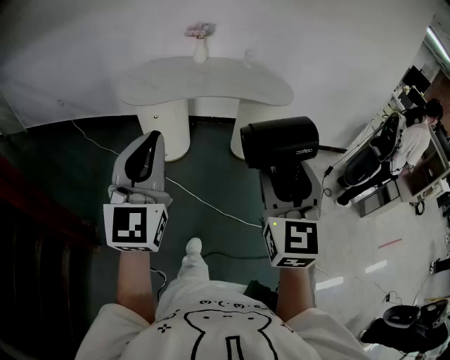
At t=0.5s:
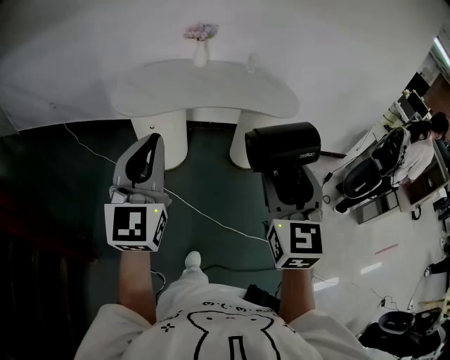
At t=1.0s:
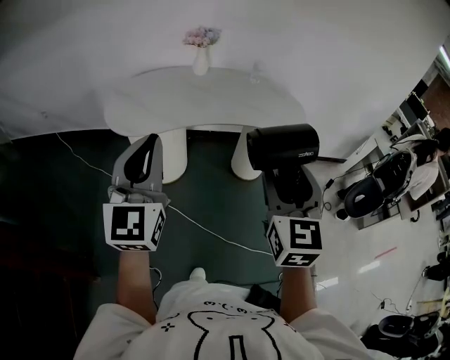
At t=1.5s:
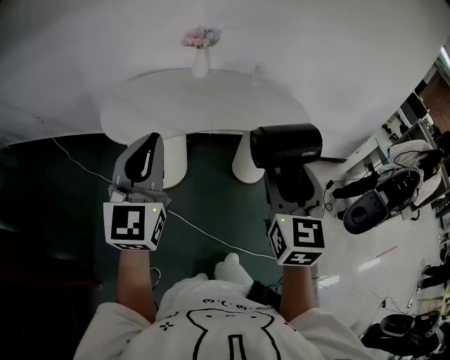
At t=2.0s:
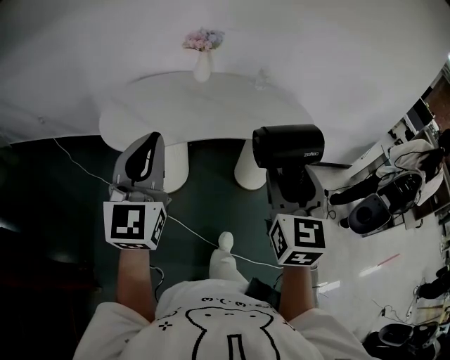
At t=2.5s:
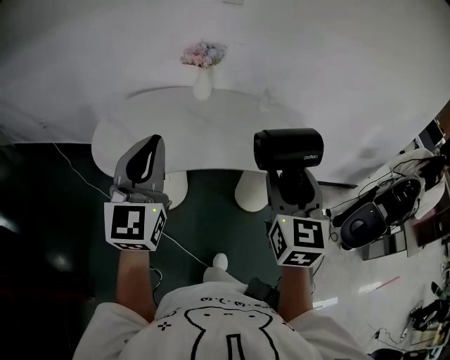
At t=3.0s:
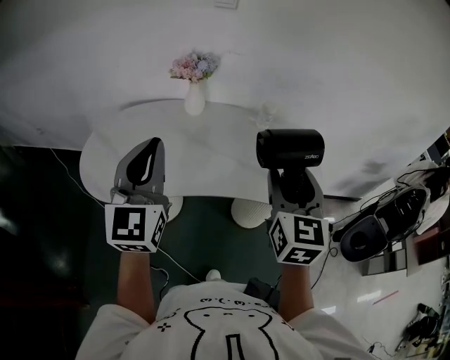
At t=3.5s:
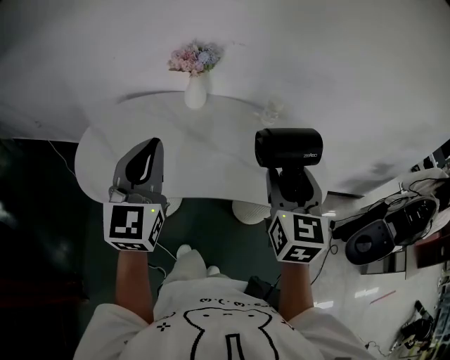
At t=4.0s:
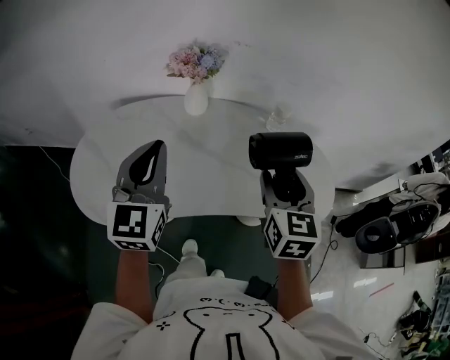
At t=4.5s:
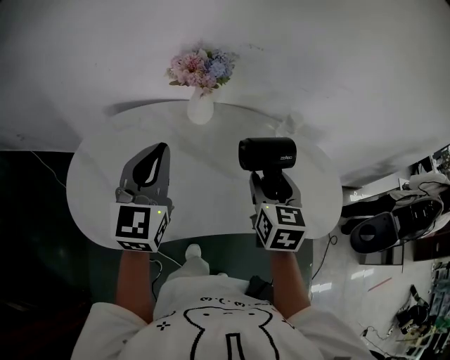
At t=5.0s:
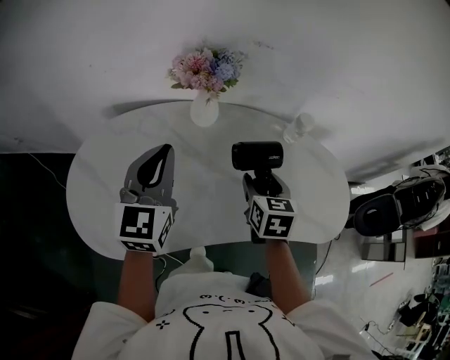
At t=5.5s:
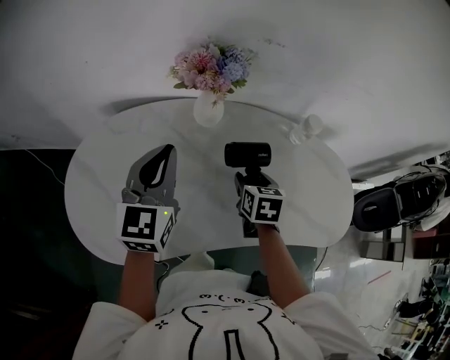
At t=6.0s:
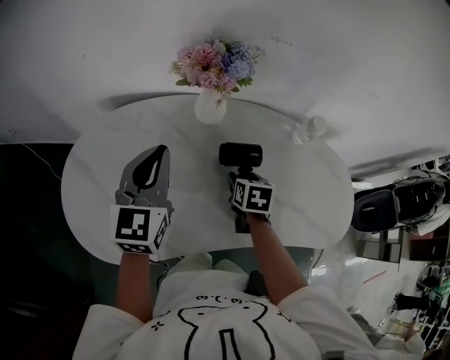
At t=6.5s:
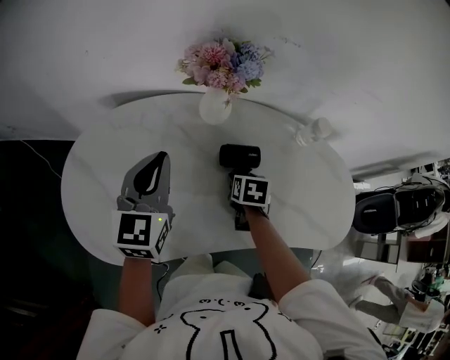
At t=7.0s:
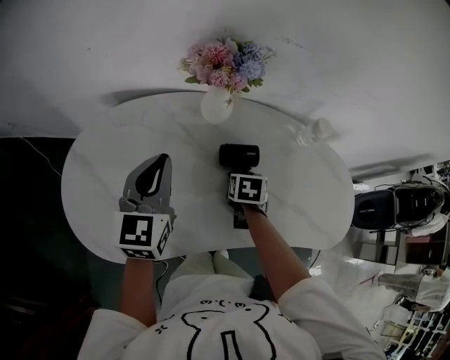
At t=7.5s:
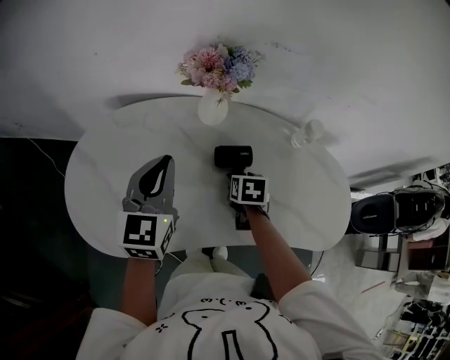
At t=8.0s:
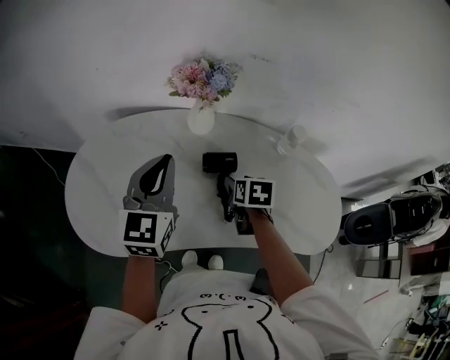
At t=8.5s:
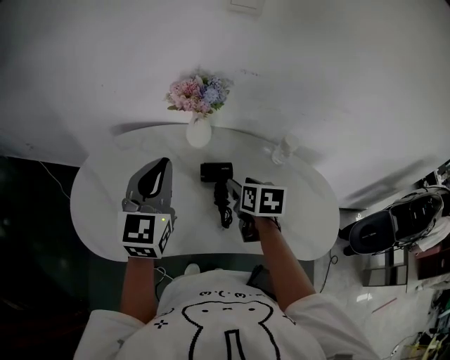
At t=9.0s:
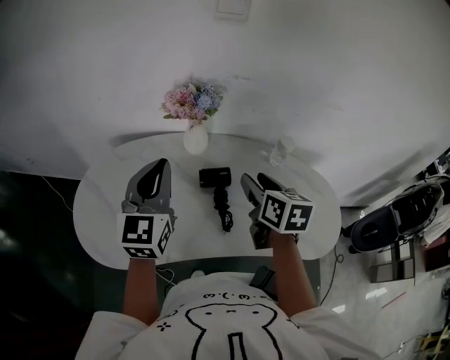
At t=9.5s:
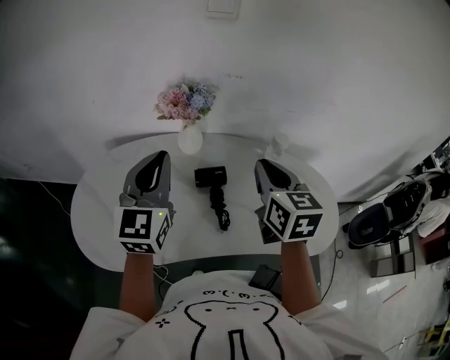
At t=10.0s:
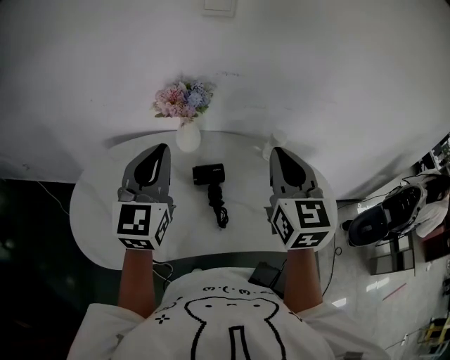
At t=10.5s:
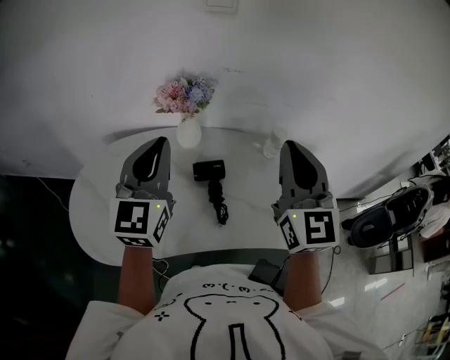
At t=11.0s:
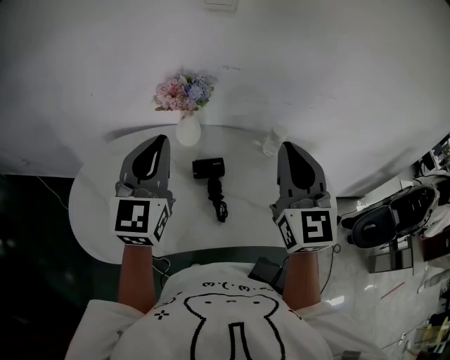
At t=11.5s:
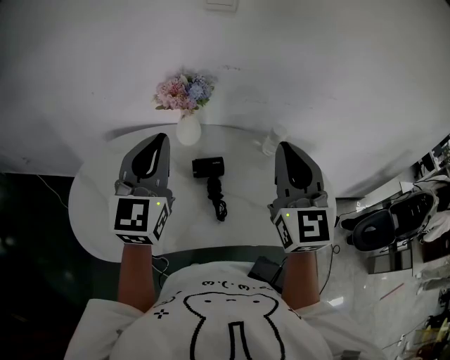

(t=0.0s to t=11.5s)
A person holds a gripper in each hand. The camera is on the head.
t=0.0s - t=2.0s: The pair of grippers is taken forward, approximately 50 cm.
t=2.0s - t=4.0s: The left gripper heads backward and downward, covering about 25 cm; the right gripper shifts about 20 cm downward and backward.
t=4.0s - t=6.0s: The right gripper shifts approximately 35 cm downward, forward and to the left, and points its fingers some 40 degrees further downward; the left gripper shifts about 20 cm forward, downward and to the left.
t=6.0s - t=7.5s: The grippers make only small movements.
t=7.5s - t=9.5s: The right gripper shifts about 30 cm upward, tilts its fingers some 40 degrees upward, and closes. Meanwhile the left gripper moves upward and to the right, approximately 15 cm.
t=9.5s - t=11.5s: The right gripper heads upward, covering about 10 cm, and turns by about 30 degrees.

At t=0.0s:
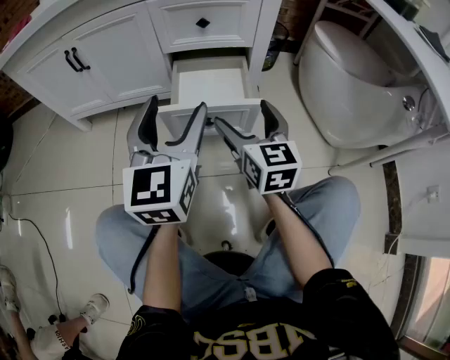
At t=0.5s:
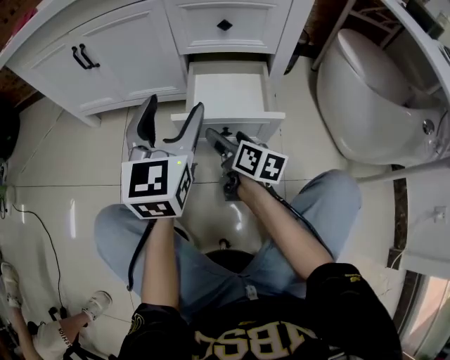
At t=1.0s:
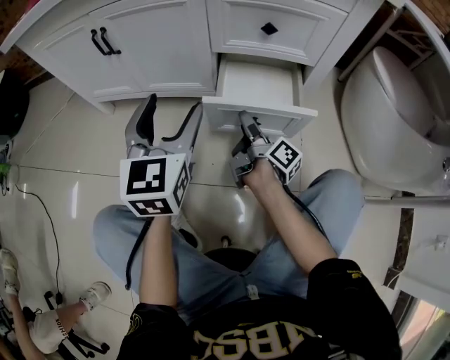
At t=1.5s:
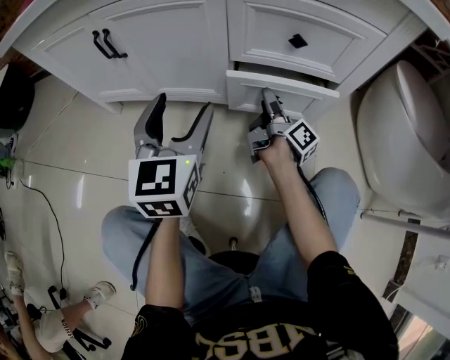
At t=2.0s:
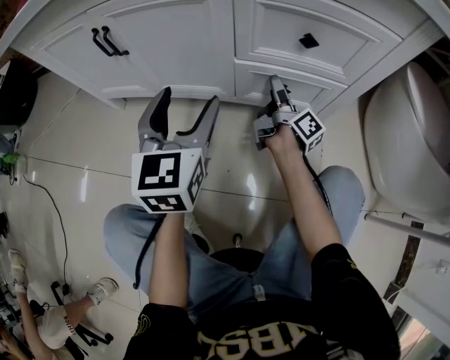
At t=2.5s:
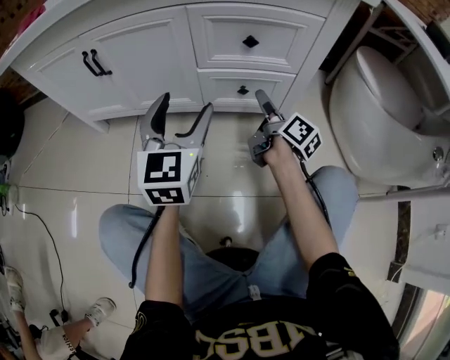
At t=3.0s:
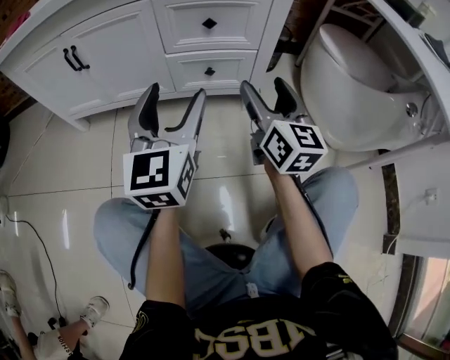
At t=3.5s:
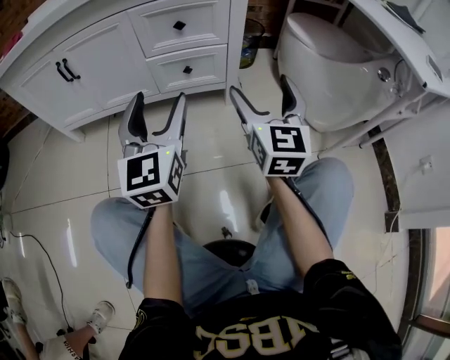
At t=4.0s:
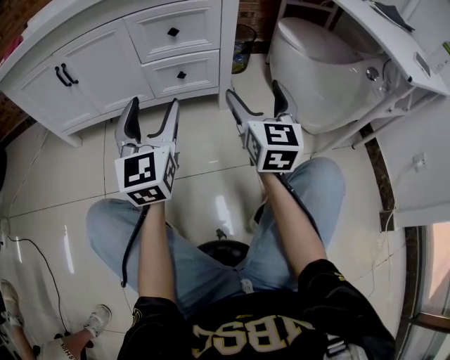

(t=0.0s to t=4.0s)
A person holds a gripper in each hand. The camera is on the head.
t=0.0s - t=2.0s: The left gripper heads forward and to the left, covering roughly 25 cm. The right gripper heads forward and downward, covering roughly 30 cm, and twists approximately 70 degrees clockwise, seen from behind.
t=2.0s - t=4.0s: The left gripper heads backward and to the right, covering about 25 cm, while the right gripper goes approximately 40 cm backward, upward and to the right, and rotates around the line of its fingers by some 80 degrees, counterclockwise from behind.

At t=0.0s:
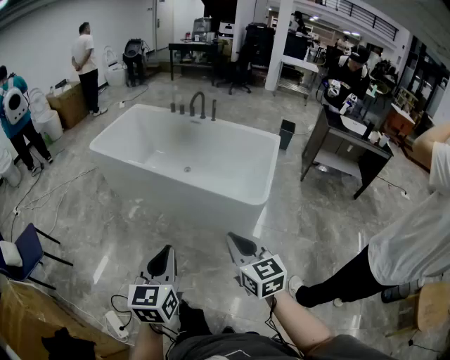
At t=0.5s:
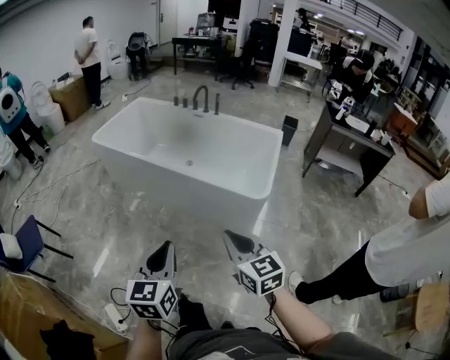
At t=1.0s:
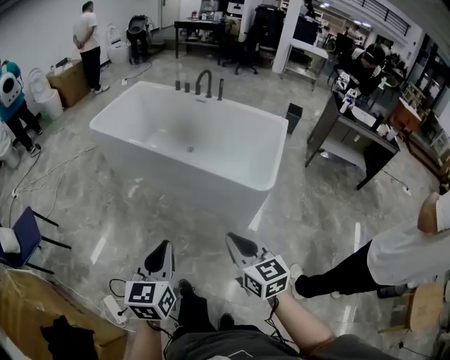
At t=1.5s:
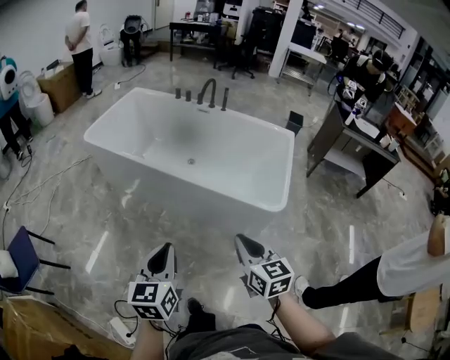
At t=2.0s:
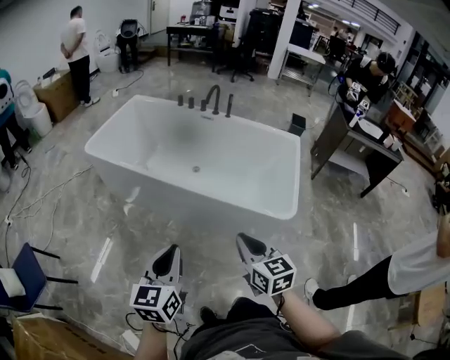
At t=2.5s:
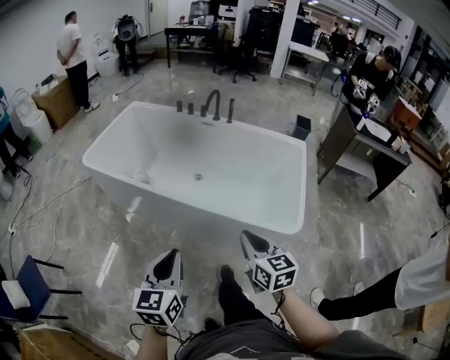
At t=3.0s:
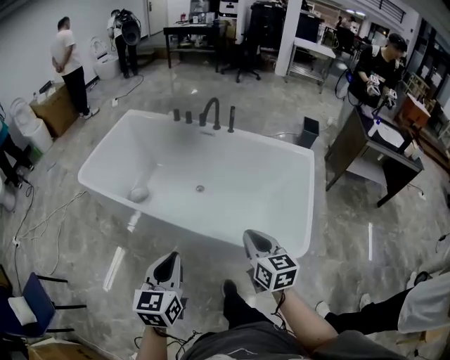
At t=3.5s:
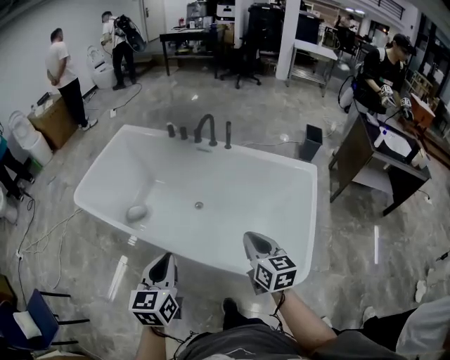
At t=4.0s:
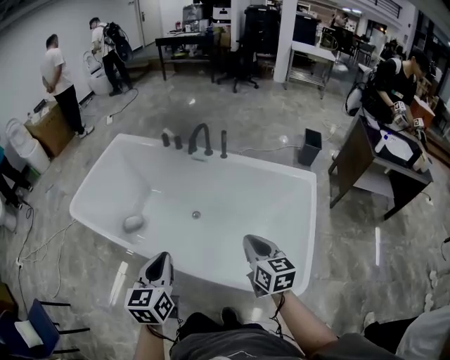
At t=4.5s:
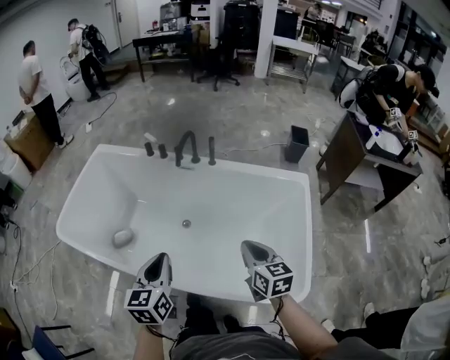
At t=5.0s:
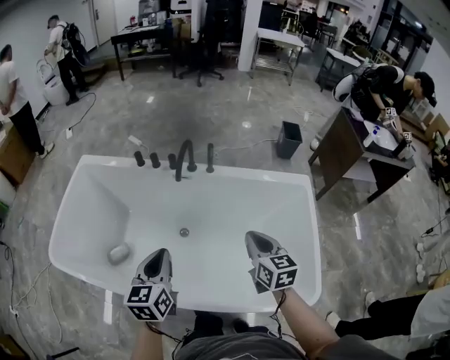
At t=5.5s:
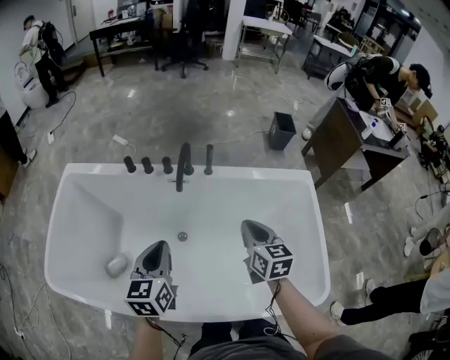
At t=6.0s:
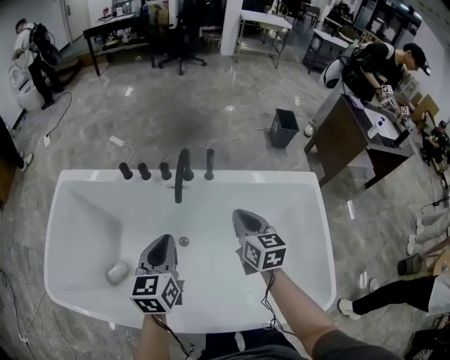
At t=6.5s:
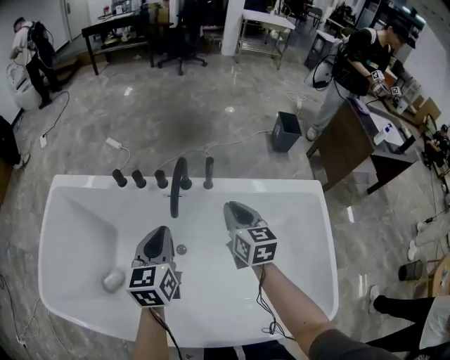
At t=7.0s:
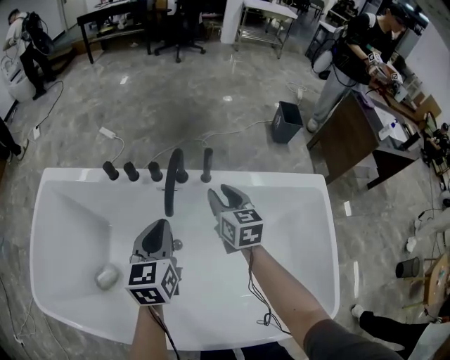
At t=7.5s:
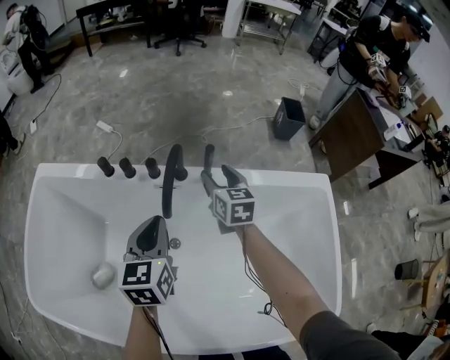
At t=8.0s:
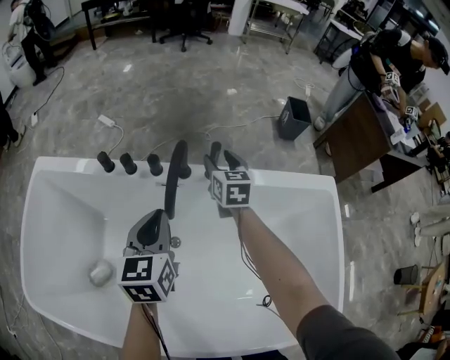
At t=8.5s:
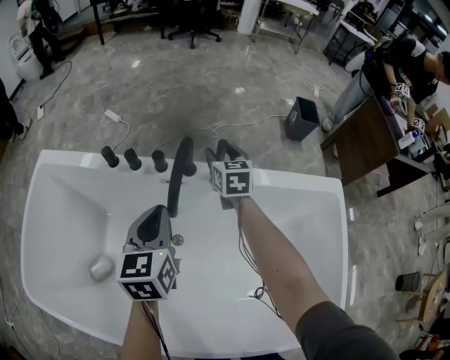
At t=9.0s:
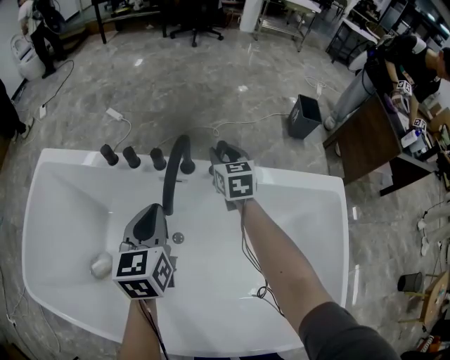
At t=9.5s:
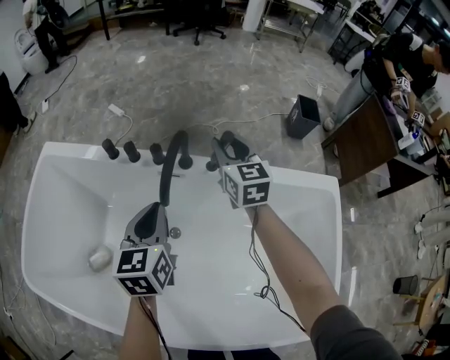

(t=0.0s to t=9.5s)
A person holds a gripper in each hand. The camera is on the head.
t=0.0s - t=2.0s: The grippers both shift forward and to the left by approximately 25 cm.
t=2.0s - t=4.0s: The two grippers travel together, forward, approximately 40 cm.
t=4.0s - t=5.5s: The two grippers go some 30 cm forward. The right gripper swivels some 20 degrees.
t=5.5s - t=7.5s: The grippers both shift forward and downward by roughly 30 cm. The right gripper opens up.
t=7.5s - t=9.5s: The right gripper goes about 5 cm upward, and closes up.

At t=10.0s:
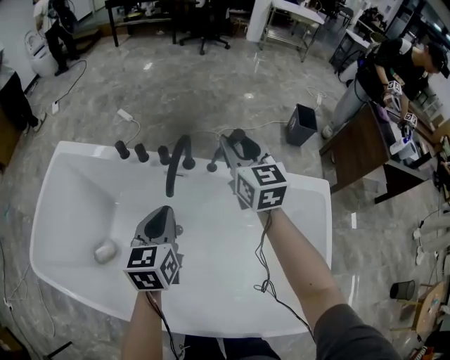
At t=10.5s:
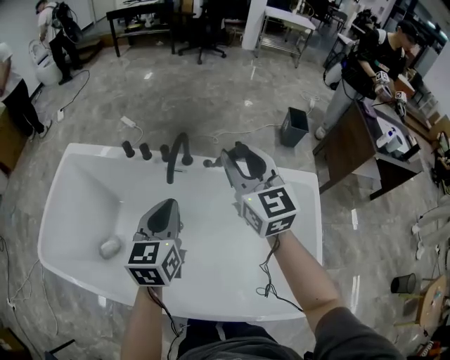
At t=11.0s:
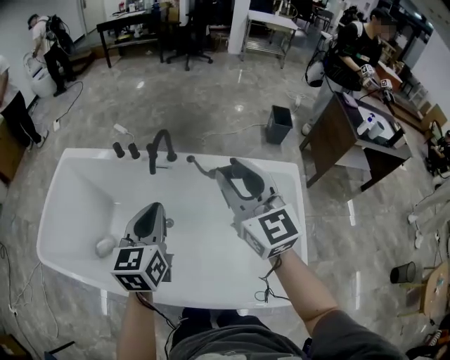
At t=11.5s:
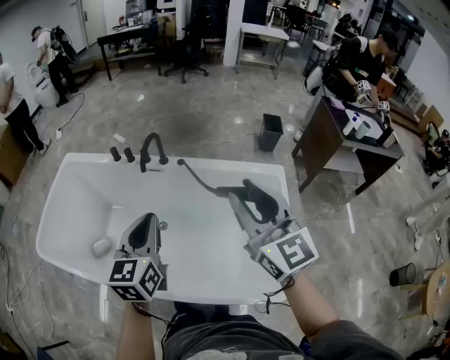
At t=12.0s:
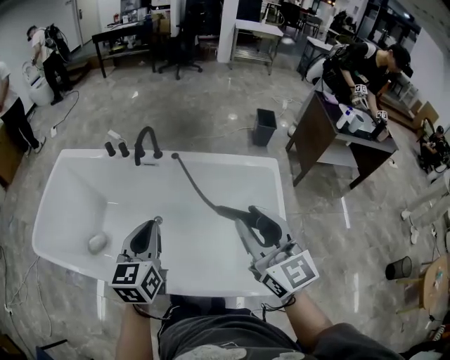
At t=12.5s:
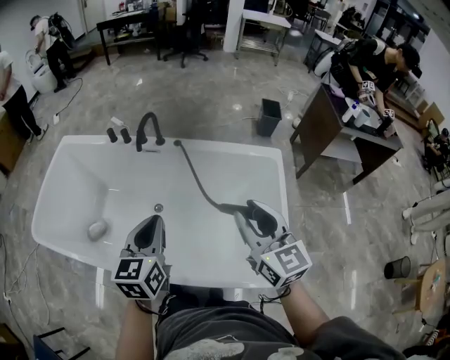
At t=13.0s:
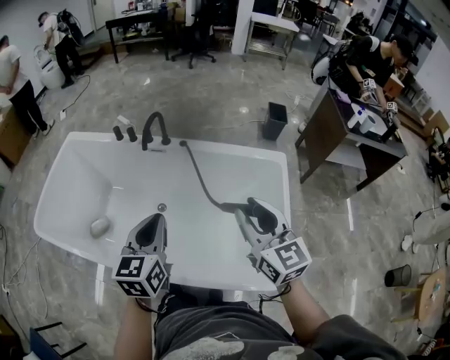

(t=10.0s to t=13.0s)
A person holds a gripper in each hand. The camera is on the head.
t=10.0s - t=11.5s: The grippers both shift backward and upward by some 40 cm.
t=11.5s - t=13.0s: The right gripper travels downward and backward by approximately 10 cm. Meanwhile the left gripper heads backward, covering about 5 cm.
